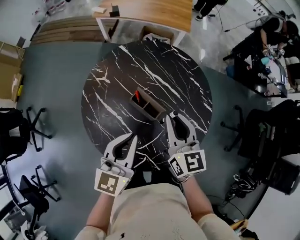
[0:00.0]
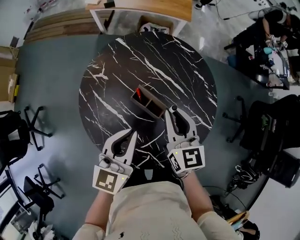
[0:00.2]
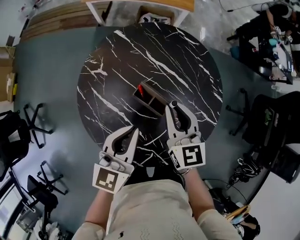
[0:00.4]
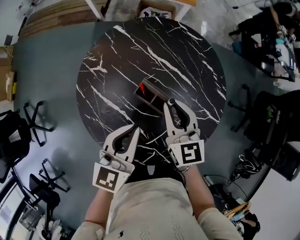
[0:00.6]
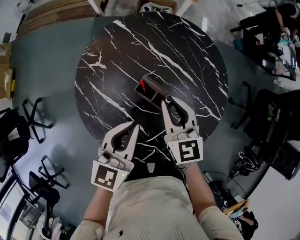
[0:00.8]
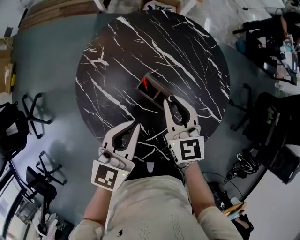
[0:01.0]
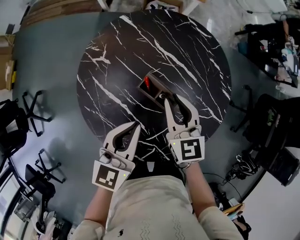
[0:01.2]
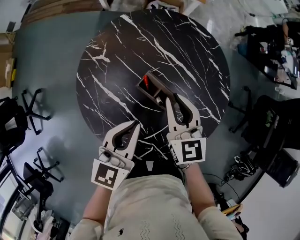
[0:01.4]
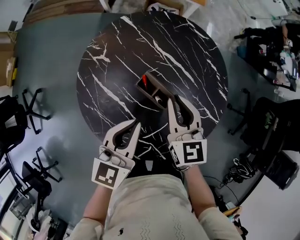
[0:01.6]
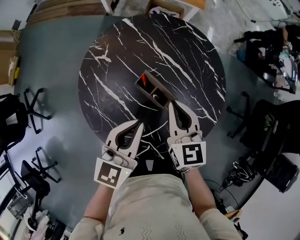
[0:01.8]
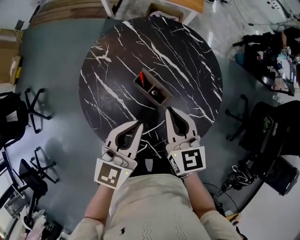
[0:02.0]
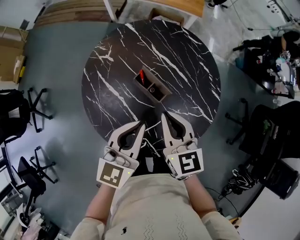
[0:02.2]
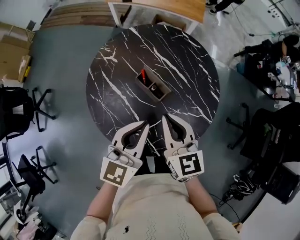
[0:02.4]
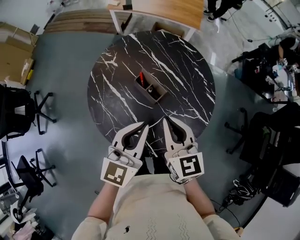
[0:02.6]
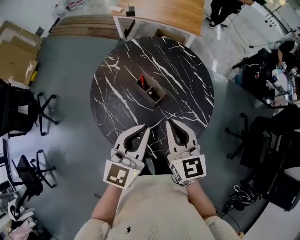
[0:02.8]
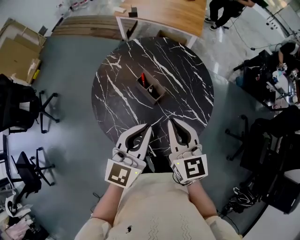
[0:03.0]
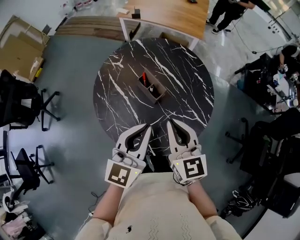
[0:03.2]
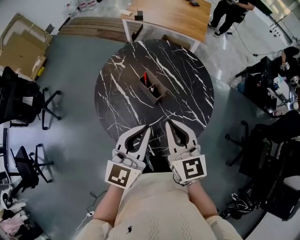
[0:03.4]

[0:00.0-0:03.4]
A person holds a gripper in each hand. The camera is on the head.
0:00.0 to 0:01.6: Both grippers move downward, about 10 cm.
0:01.6 to 0:03.4: The right gripper is displaced backward and upward by approximately 25 cm, while the left gripper travels backward, upward and to the right by some 25 cm, and changes its angle by roughly 20 degrees.

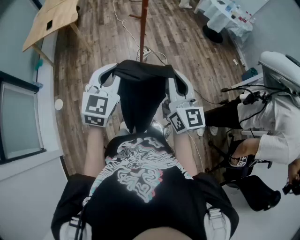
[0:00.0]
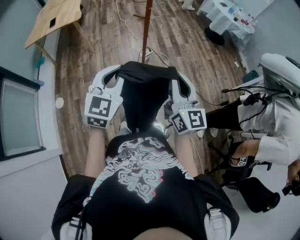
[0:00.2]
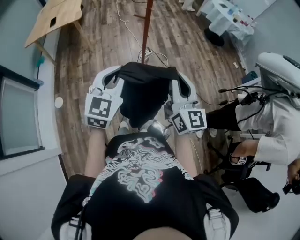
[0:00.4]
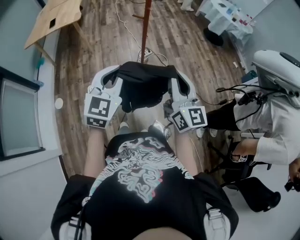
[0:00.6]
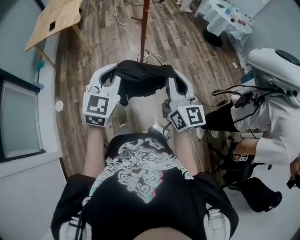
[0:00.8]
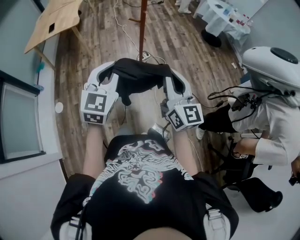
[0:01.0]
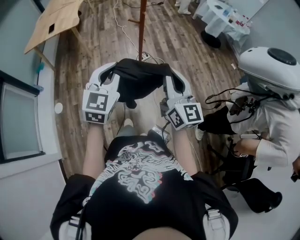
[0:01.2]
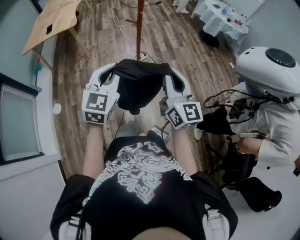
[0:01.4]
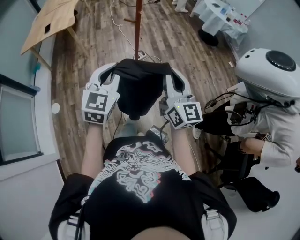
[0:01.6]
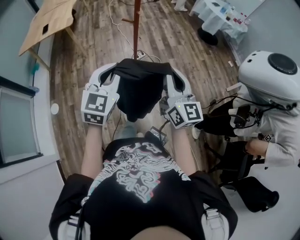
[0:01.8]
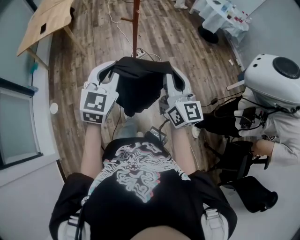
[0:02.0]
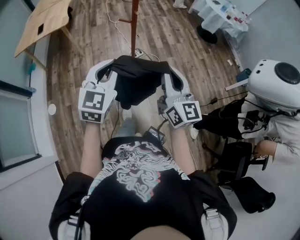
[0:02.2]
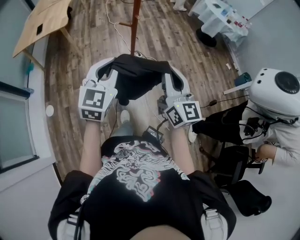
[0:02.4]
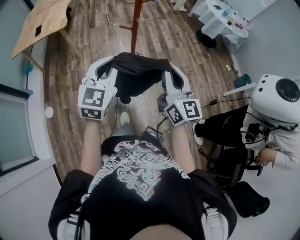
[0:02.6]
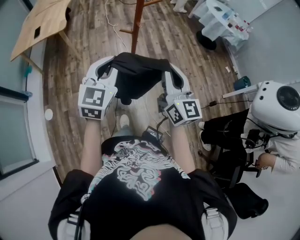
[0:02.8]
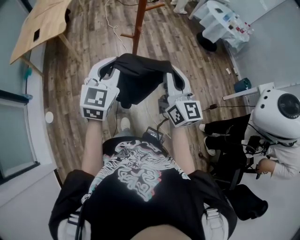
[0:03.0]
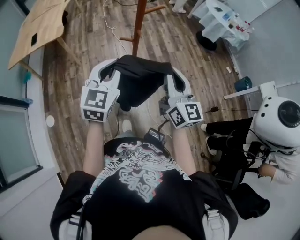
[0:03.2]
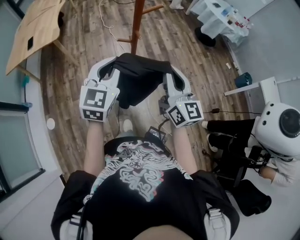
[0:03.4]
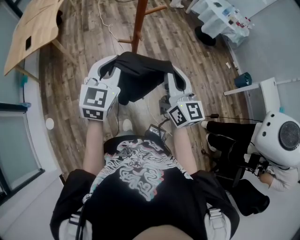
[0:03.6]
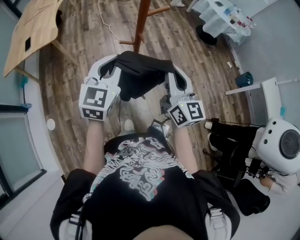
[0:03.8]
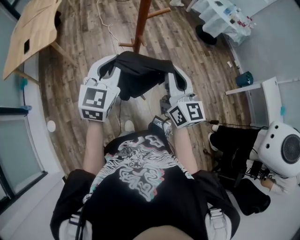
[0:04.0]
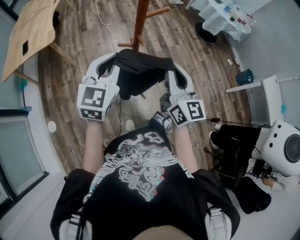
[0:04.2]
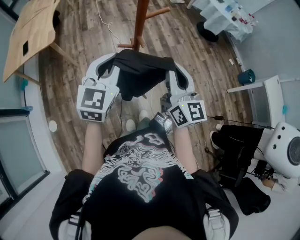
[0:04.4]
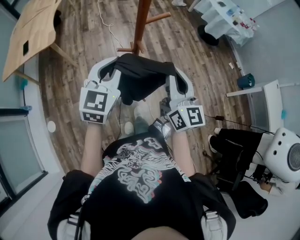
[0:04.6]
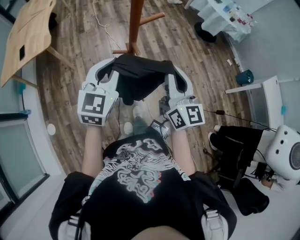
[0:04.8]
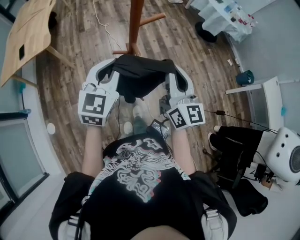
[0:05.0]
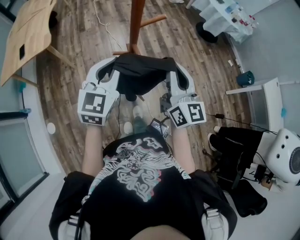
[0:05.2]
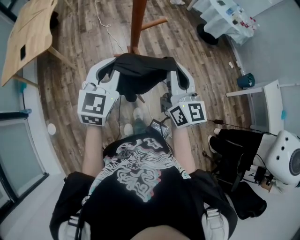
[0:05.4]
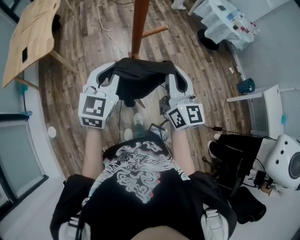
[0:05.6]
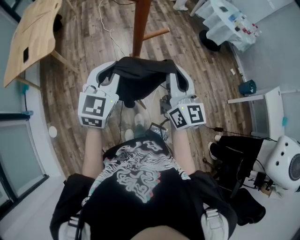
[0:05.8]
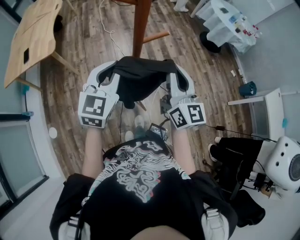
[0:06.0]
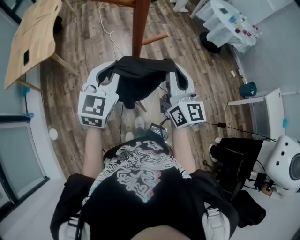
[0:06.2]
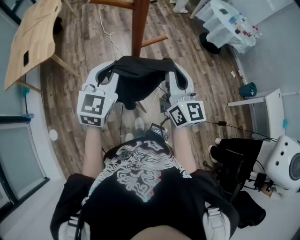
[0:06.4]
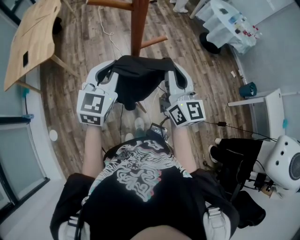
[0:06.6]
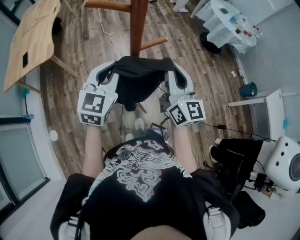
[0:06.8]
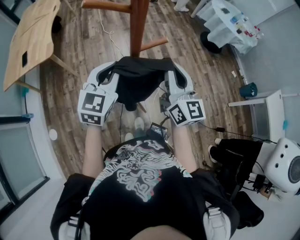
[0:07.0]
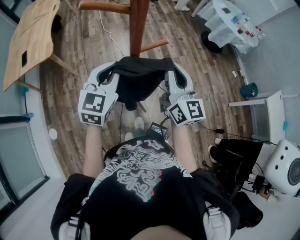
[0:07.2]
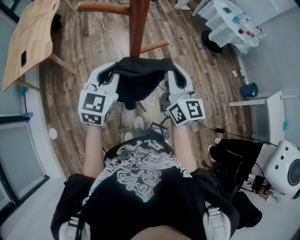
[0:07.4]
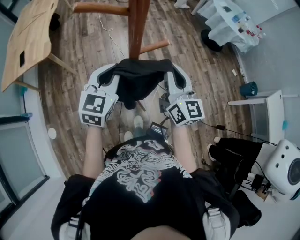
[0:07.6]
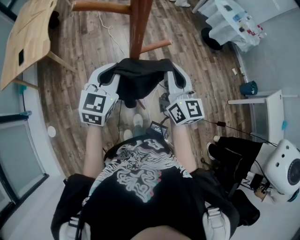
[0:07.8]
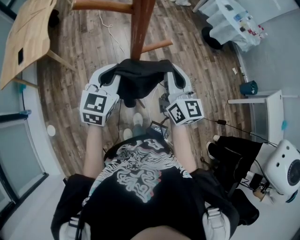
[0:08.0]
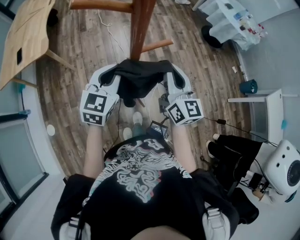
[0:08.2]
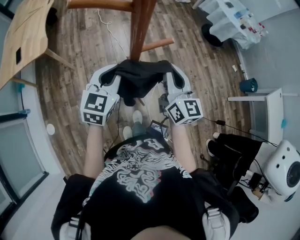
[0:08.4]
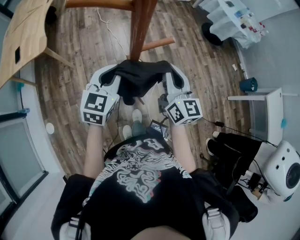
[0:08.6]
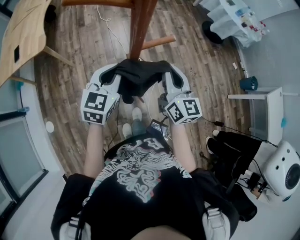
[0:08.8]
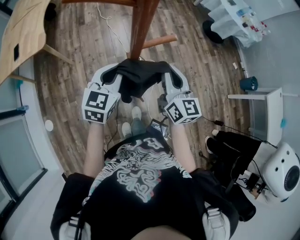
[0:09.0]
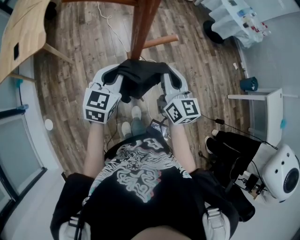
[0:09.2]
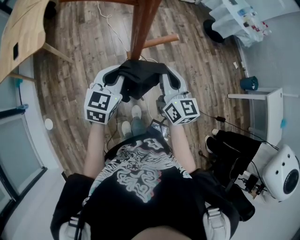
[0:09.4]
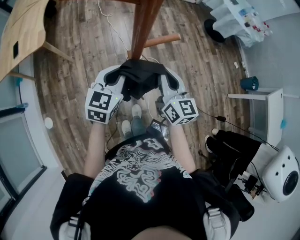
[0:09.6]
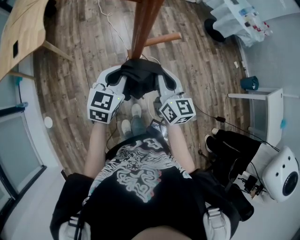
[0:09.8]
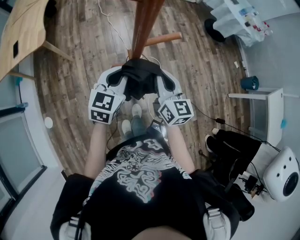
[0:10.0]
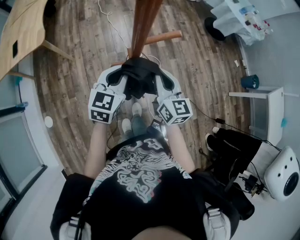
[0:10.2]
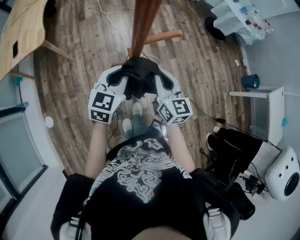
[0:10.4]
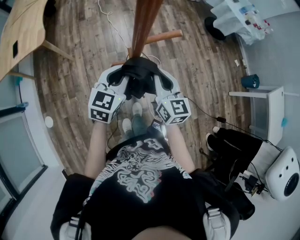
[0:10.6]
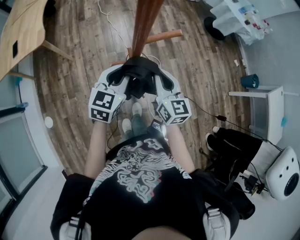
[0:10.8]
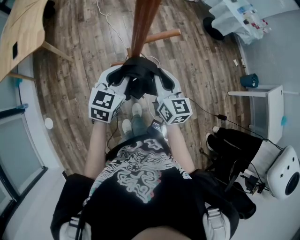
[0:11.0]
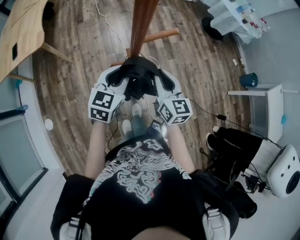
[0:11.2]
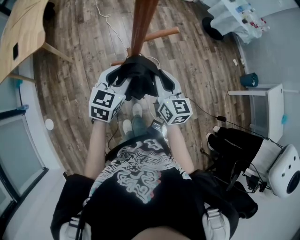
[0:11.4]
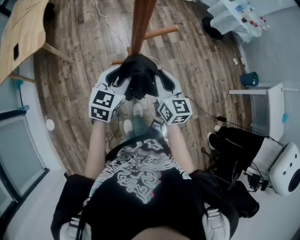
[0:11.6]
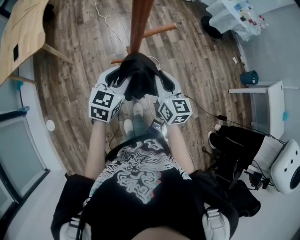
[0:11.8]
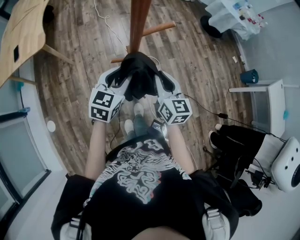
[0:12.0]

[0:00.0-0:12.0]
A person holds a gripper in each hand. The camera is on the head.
0:00.0 to 0:01.6: There are only small adjustments of the grippers.
0:01.6 to 0:03.0: The grippers both shift forward by some 20 cm.
0:03.0 to 0:04.4: The two grippers go approximately 15 cm forward.
0:04.4 to 0:06.0: The two grippers go about 10 cm forward.
0:06.0 to 0:07.6: The grippers both shift forward by roughly 5 cm.
0:07.6 to 0:09.0: Both grippers travel together downward, about 5 cm.
0:09.0 to 0:10.4: The right gripper heads downward, covering some 5 cm.
0:10.4 to 0:12.0: The left gripper opens its fingers.

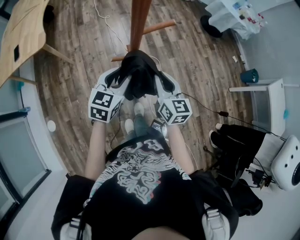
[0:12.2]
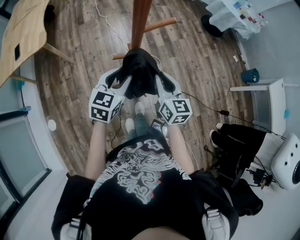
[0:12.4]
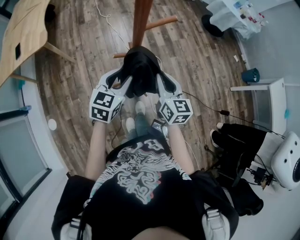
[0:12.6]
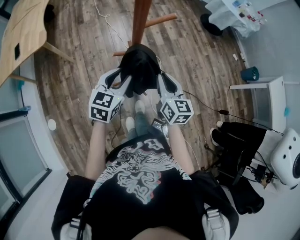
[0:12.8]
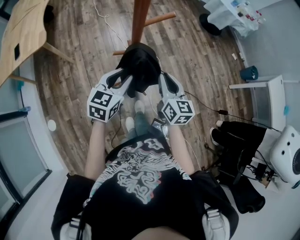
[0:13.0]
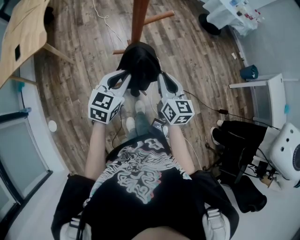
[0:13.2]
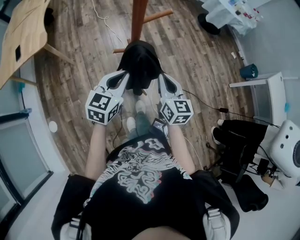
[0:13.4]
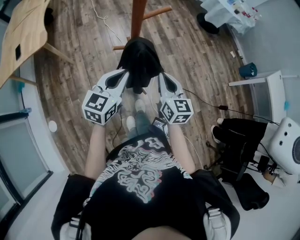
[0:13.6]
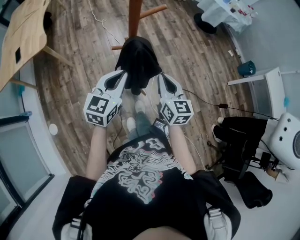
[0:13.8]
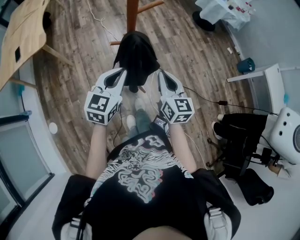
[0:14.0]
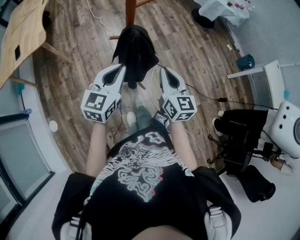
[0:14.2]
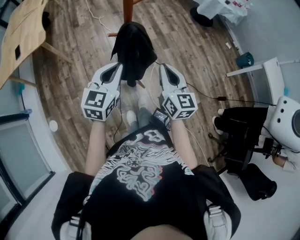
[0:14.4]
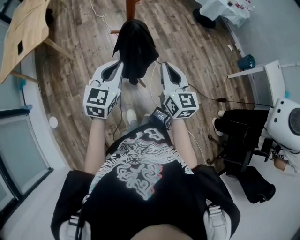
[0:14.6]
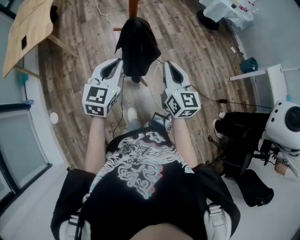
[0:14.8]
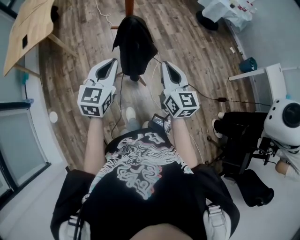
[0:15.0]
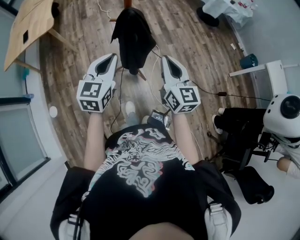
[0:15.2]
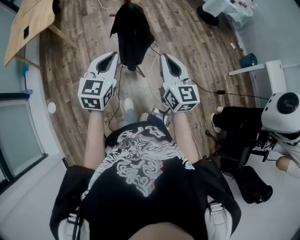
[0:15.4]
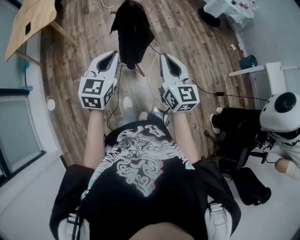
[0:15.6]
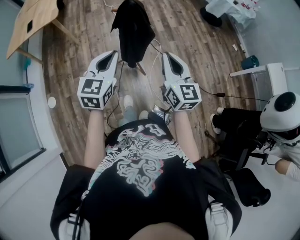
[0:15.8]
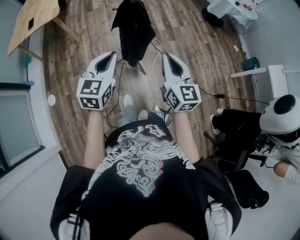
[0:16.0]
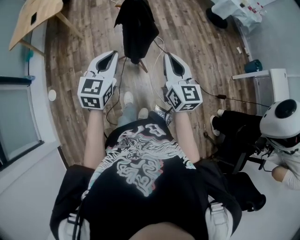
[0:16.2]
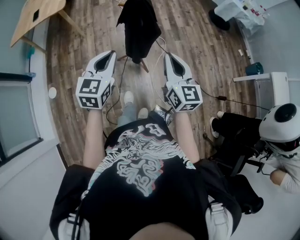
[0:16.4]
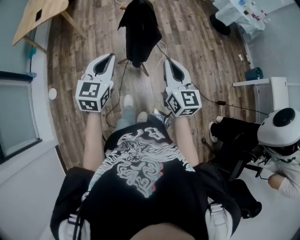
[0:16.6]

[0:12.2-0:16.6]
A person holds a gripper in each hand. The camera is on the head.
0:12.2 to 0:13.6: Both grippers travel together backward, roughly 5 cm. The left gripper closes up.
0:13.6 to 0:15.2: The right gripper travels backward, upward and to the right by some 20 cm. The left gripper goes about 15 cm backward.
0:15.2 to 0:16.6: The grippers both shift backward by approximately 5 cm.

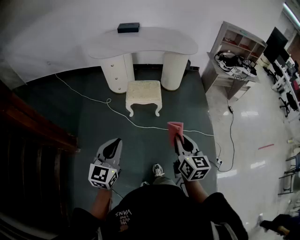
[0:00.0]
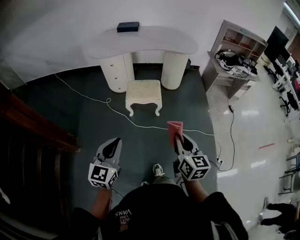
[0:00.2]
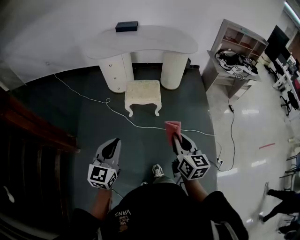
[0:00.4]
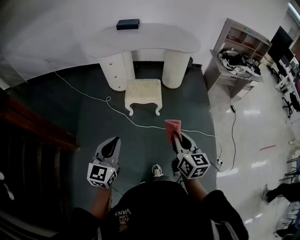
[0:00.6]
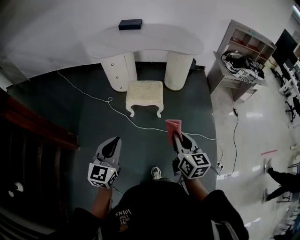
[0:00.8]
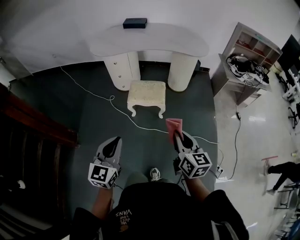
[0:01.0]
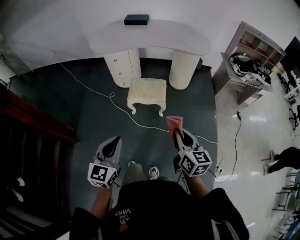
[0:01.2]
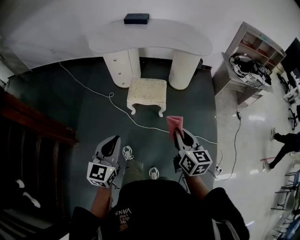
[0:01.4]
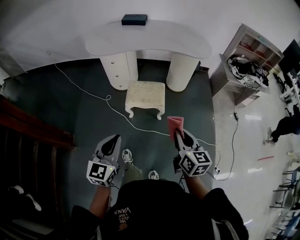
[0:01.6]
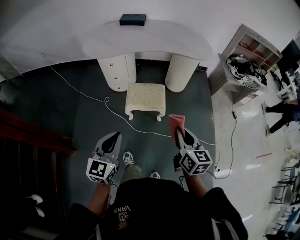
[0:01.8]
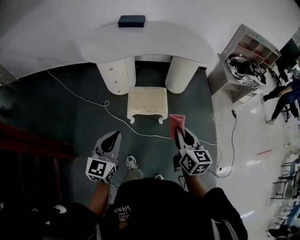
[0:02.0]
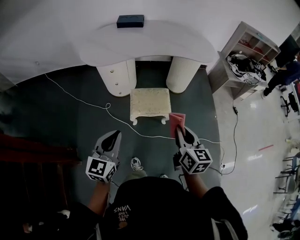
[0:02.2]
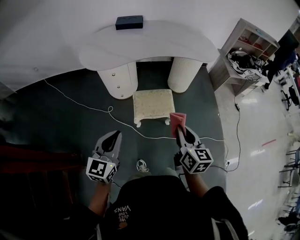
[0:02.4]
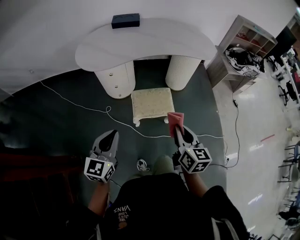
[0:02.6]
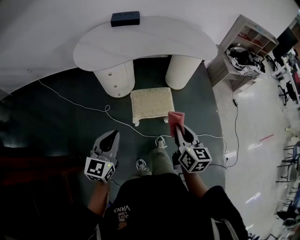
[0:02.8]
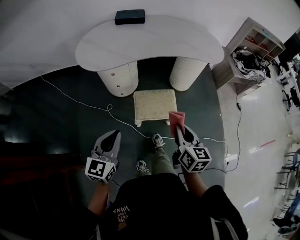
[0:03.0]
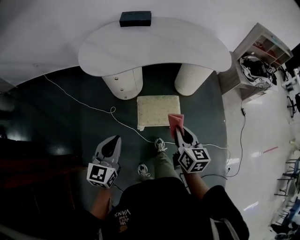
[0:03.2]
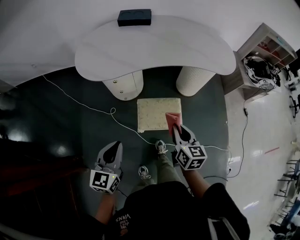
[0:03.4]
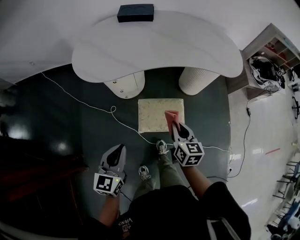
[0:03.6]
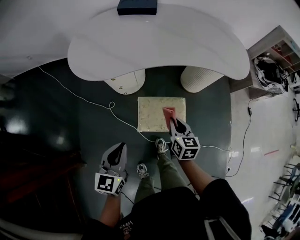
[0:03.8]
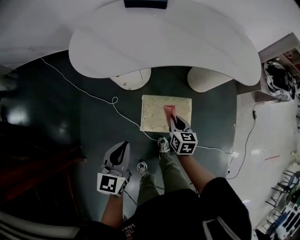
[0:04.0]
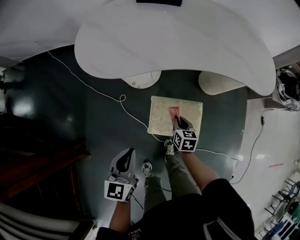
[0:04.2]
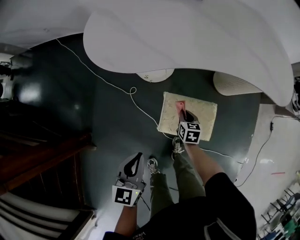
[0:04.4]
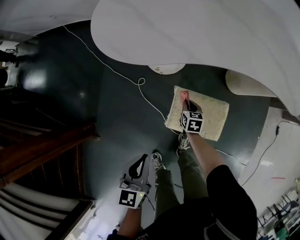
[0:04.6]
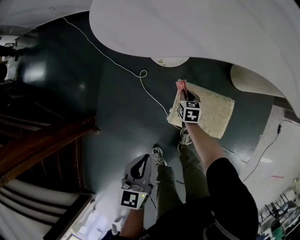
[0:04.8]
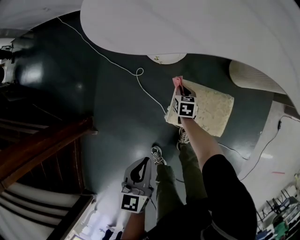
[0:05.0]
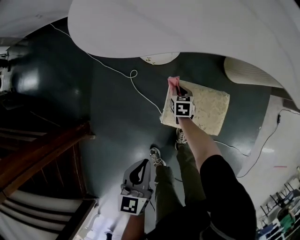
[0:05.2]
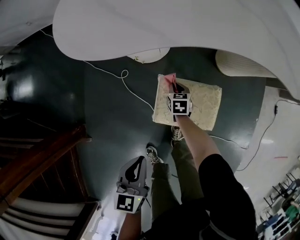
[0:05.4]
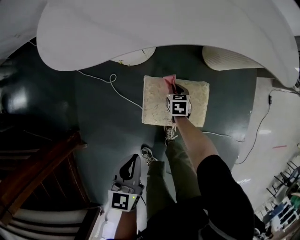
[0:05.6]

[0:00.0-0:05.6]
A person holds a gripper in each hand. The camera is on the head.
0:00.0 to 0:01.4: The grippers both shift forward by about 15 cm.
0:01.4 to 0:02.8: The two grippers go approximately 30 cm forward and to the left.
0:02.8 to 0:04.2: The right gripper moves downward and forward, about 40 cm, and changes its angle by about 30 degrees. Meanwhile the left gripper travels forward and downward by approximately 20 cm, and changes its angle by approximately 20 degrees.
0:04.2 to 0:05.6: The left gripper is displaced downward by roughly 10 cm. Meanwhile the right gripper shifts roughly 20 cm downward and forward.
